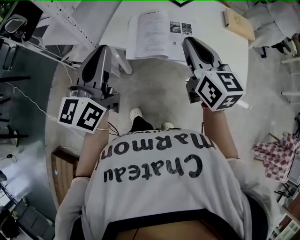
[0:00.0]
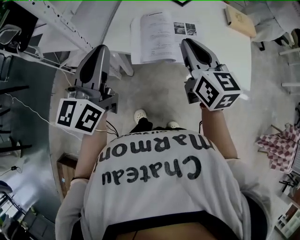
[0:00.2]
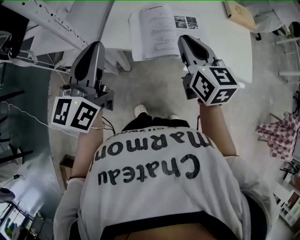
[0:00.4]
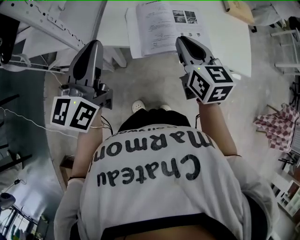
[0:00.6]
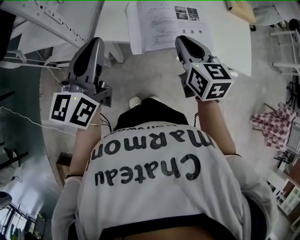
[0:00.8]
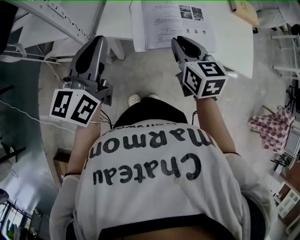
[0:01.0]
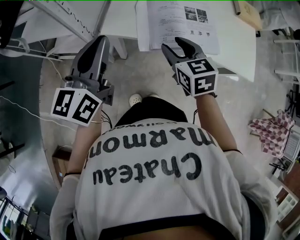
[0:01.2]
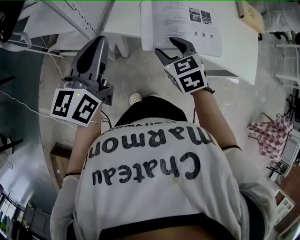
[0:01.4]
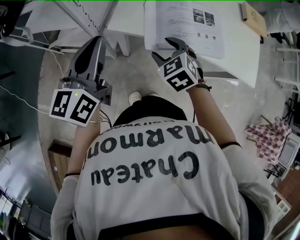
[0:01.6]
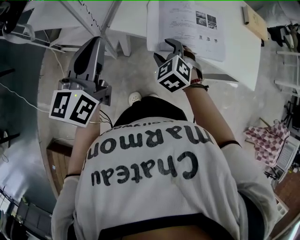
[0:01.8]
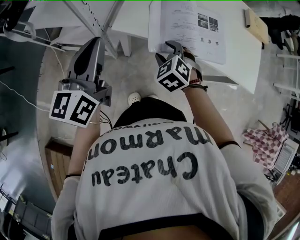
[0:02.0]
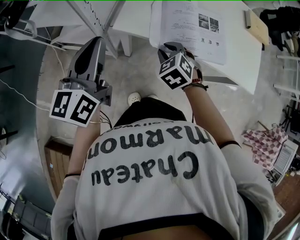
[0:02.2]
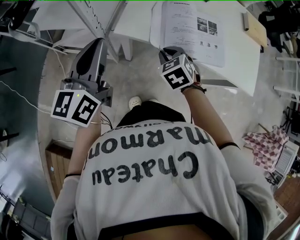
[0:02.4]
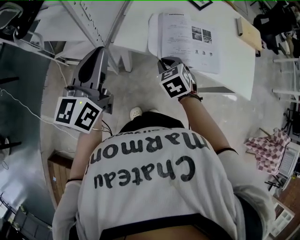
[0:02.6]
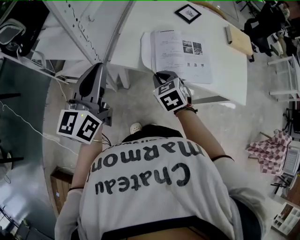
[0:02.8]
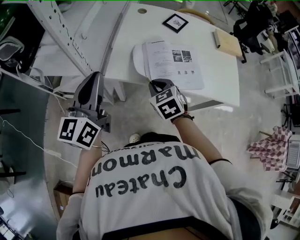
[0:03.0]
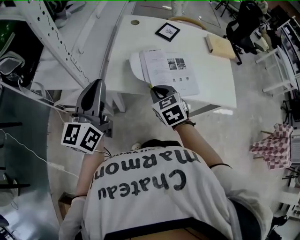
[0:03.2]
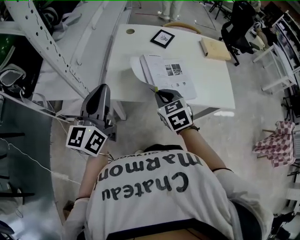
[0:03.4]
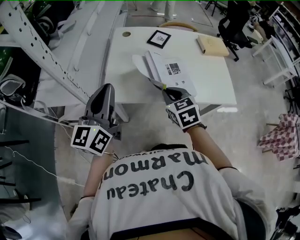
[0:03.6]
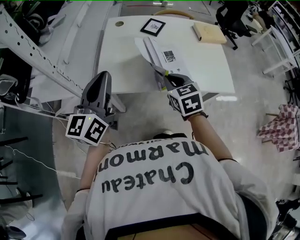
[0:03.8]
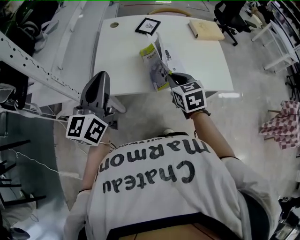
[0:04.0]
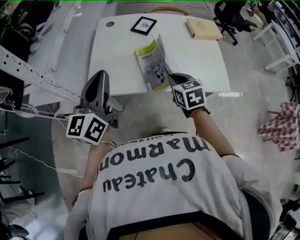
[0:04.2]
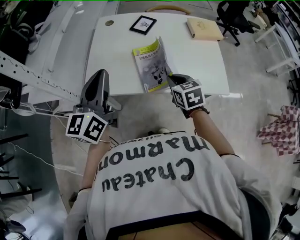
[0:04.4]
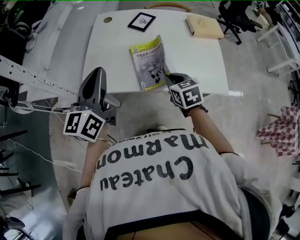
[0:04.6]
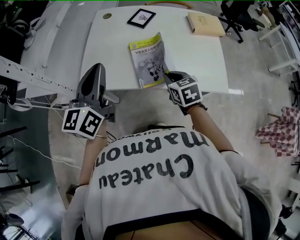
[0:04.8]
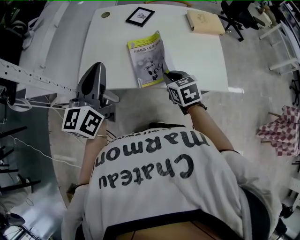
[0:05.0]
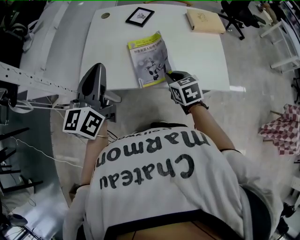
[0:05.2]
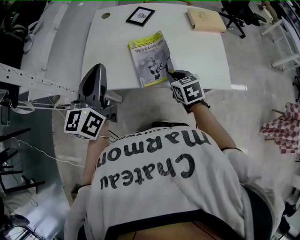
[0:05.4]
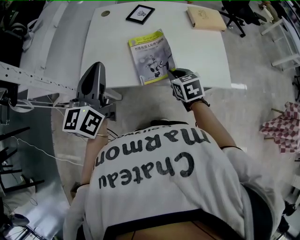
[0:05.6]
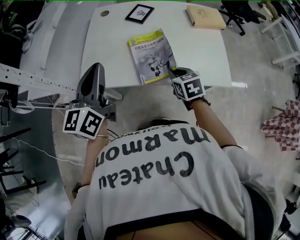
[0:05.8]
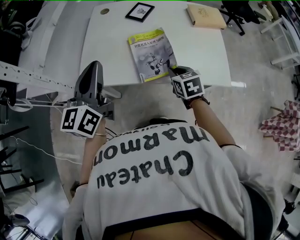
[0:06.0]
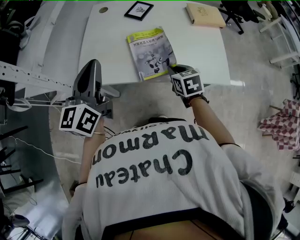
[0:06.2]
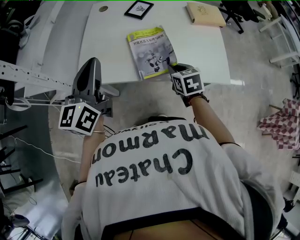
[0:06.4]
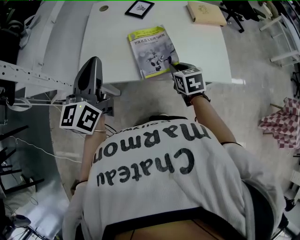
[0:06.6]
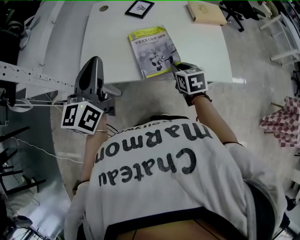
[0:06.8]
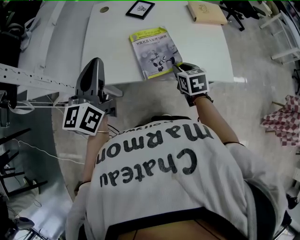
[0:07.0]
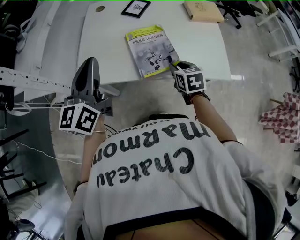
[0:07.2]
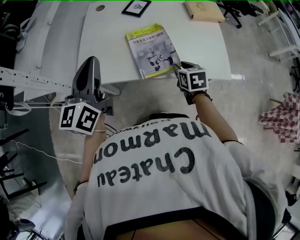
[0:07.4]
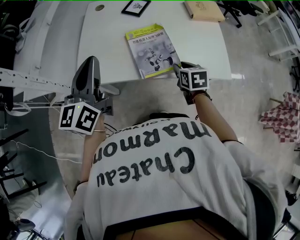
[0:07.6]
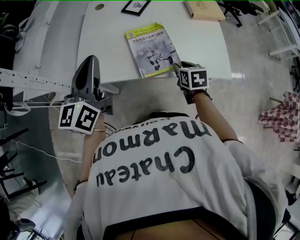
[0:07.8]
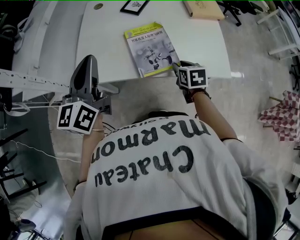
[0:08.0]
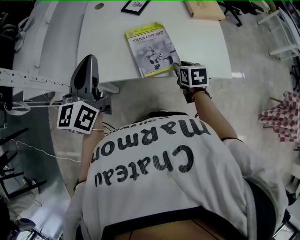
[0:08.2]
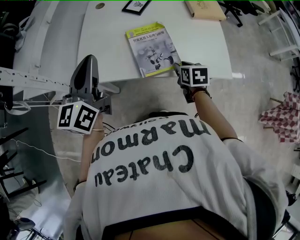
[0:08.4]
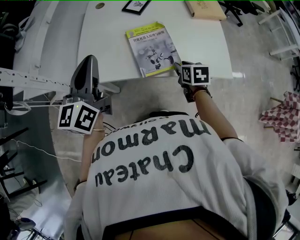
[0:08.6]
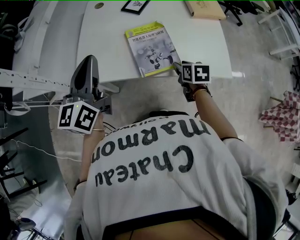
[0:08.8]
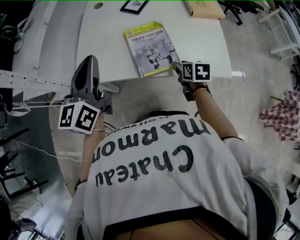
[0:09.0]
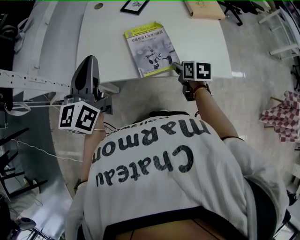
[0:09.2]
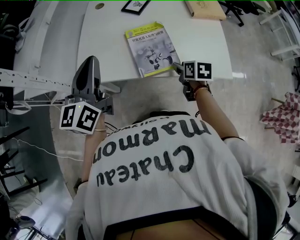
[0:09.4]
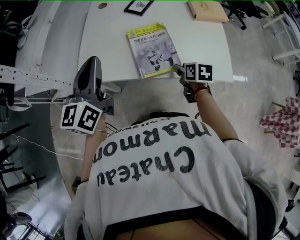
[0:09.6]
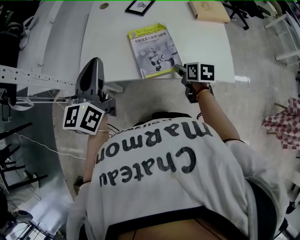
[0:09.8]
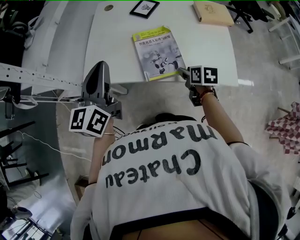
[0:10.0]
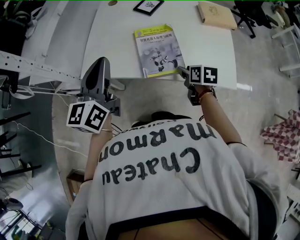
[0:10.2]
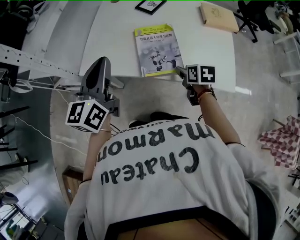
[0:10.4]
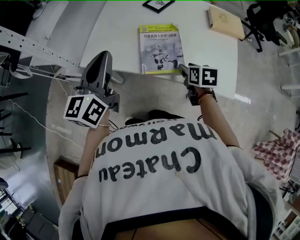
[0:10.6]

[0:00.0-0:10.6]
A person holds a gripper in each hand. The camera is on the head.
0:00.0 to 0:01.6: The left gripper heads to the left, downward and forward, covering roughly 15 cm; the right gripper goes about 25 cm downward and to the left, tips its fingers downward by roughly 40 degrees, and opens its fingers.
0:01.6 to 0:03.0: The left gripper is displaced upward by some 5 cm, while the right gripper closes its fingers.
0:03.0 to 0:04.6: Both grippers travel together to the right, some 20 cm. The right gripper swivels about 20 degrees.
0:04.6 to 0:06.0: The grippers move only a little.
0:06.0 to 0:07.6: The right gripper opens its fingers.
0:07.6 to 0:10.6: There are only small adjustments of the grippers.

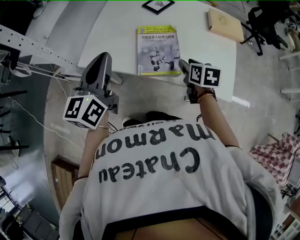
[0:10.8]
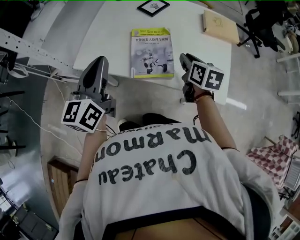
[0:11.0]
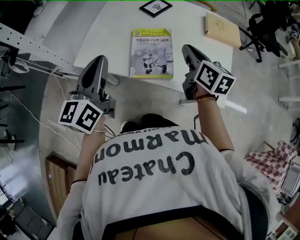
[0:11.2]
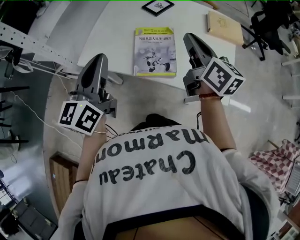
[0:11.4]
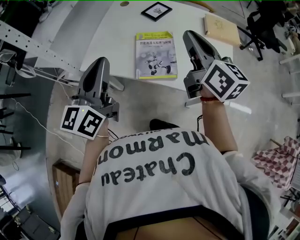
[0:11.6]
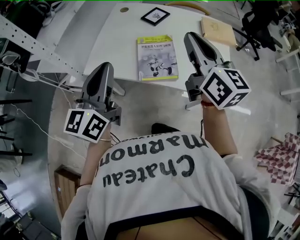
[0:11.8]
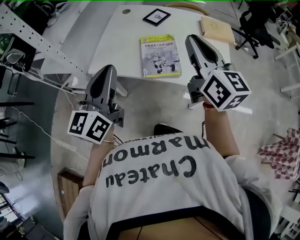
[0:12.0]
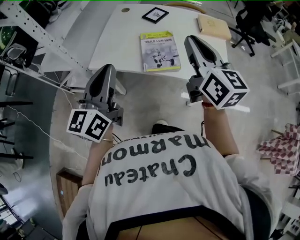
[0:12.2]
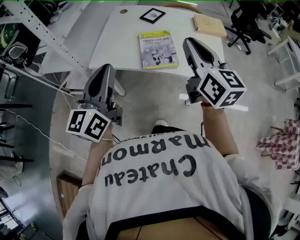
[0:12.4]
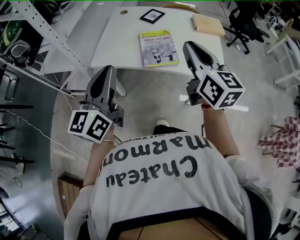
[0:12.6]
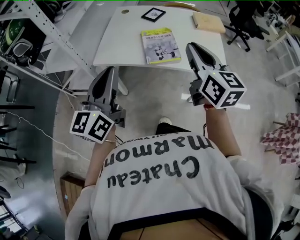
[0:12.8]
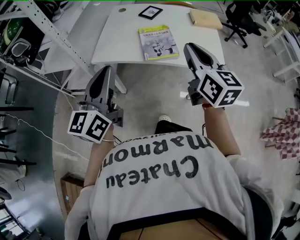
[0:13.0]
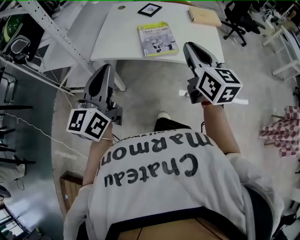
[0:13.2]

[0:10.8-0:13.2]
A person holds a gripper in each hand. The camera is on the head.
0:10.8 to 0:12.0: The left gripper goes roughly 10 cm backward and upward; the right gripper is displaced upward by roughly 30 cm, tips its fingers upward by some 50 degrees, and closes up.
0:12.0 to 0:13.2: The two grippers go some 15 cm backward.

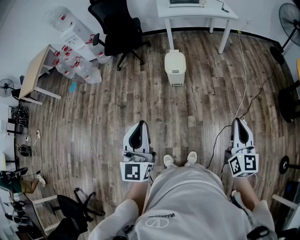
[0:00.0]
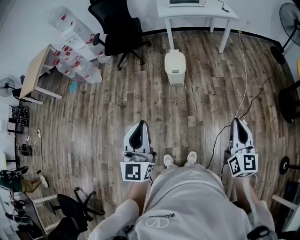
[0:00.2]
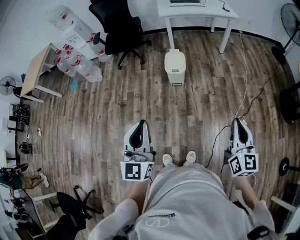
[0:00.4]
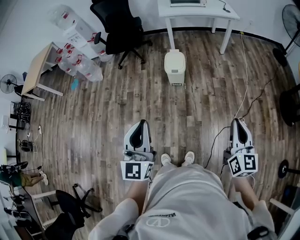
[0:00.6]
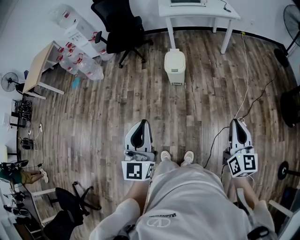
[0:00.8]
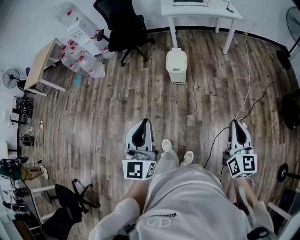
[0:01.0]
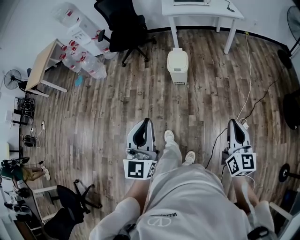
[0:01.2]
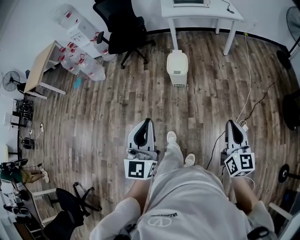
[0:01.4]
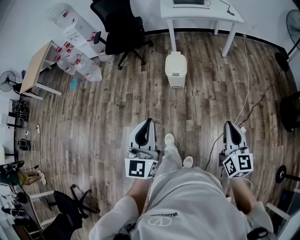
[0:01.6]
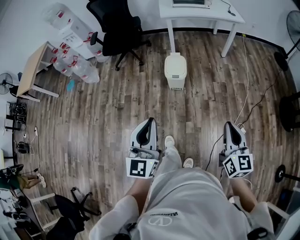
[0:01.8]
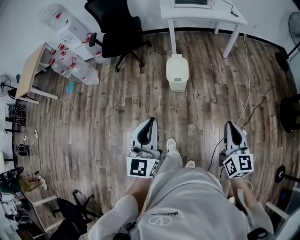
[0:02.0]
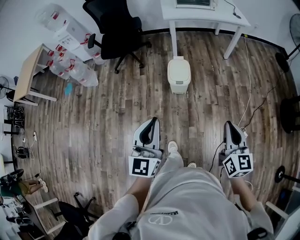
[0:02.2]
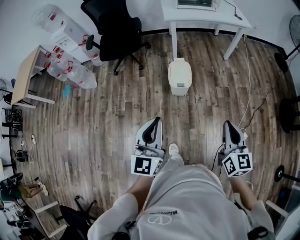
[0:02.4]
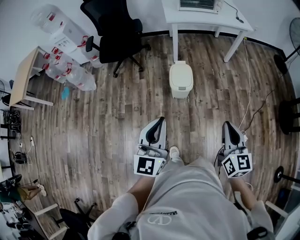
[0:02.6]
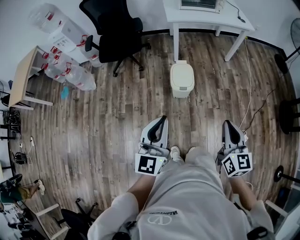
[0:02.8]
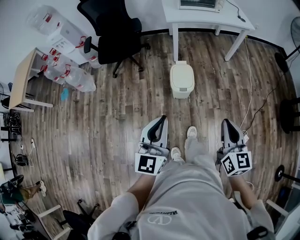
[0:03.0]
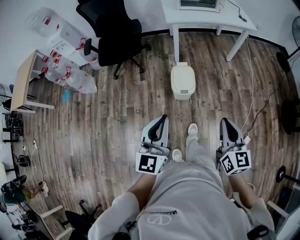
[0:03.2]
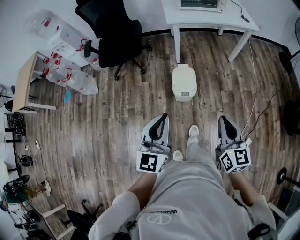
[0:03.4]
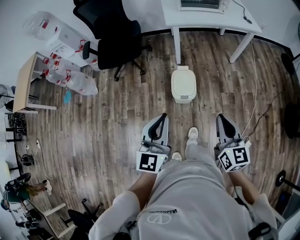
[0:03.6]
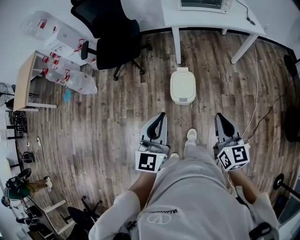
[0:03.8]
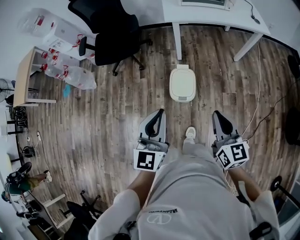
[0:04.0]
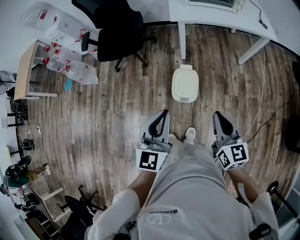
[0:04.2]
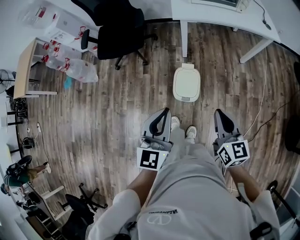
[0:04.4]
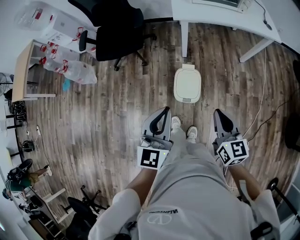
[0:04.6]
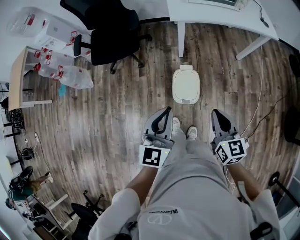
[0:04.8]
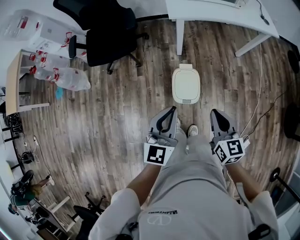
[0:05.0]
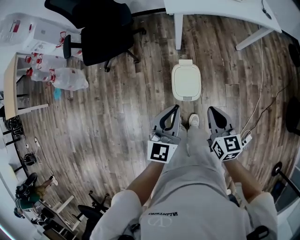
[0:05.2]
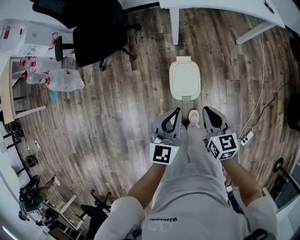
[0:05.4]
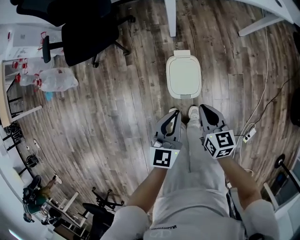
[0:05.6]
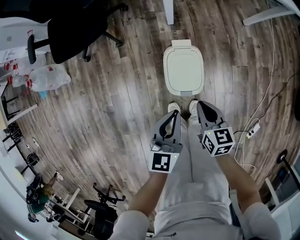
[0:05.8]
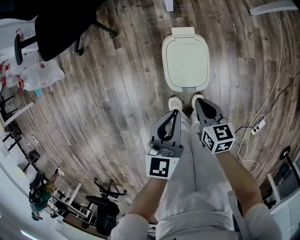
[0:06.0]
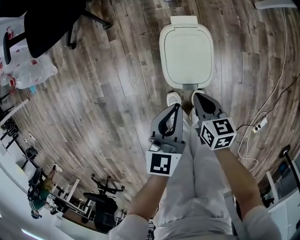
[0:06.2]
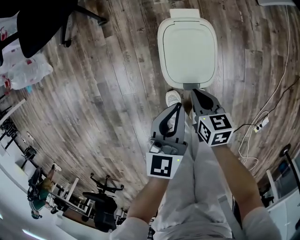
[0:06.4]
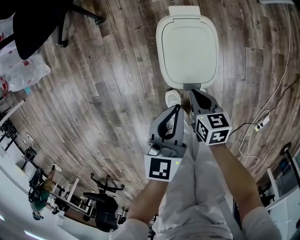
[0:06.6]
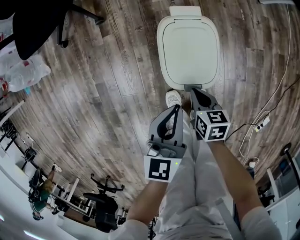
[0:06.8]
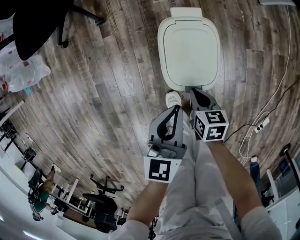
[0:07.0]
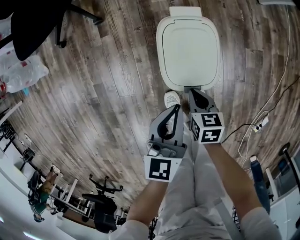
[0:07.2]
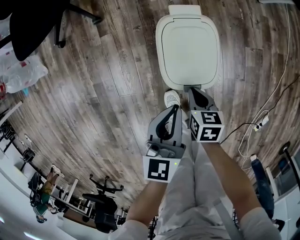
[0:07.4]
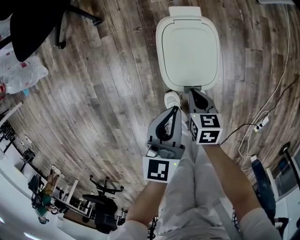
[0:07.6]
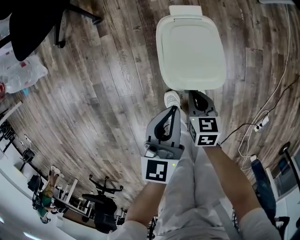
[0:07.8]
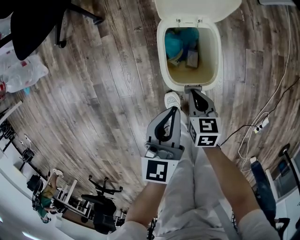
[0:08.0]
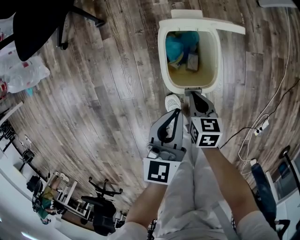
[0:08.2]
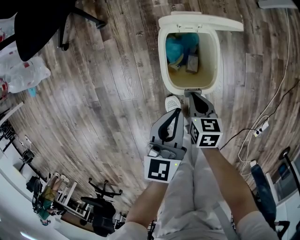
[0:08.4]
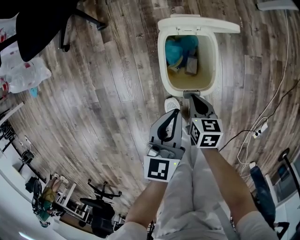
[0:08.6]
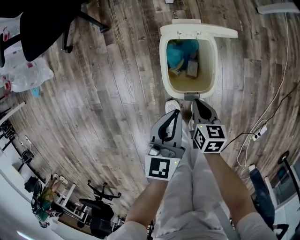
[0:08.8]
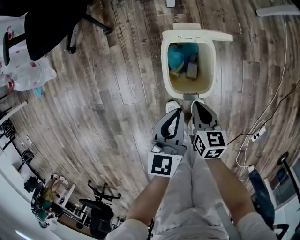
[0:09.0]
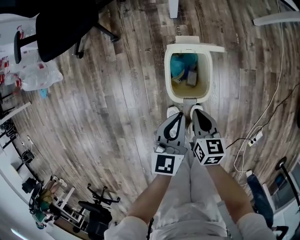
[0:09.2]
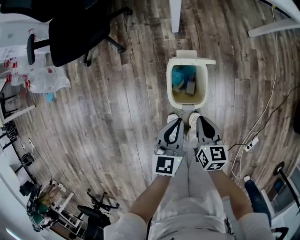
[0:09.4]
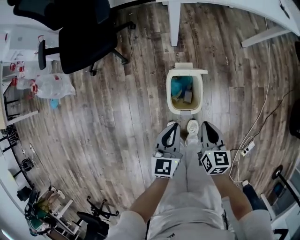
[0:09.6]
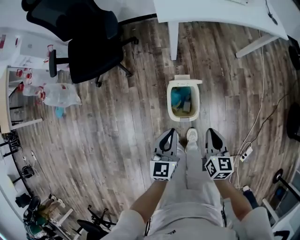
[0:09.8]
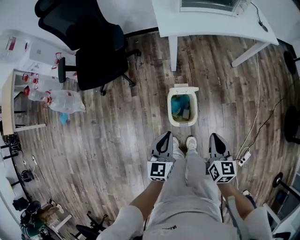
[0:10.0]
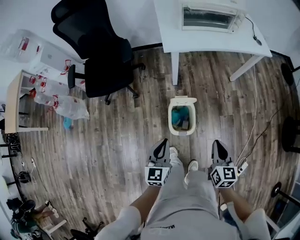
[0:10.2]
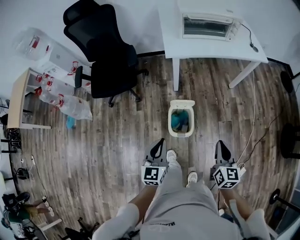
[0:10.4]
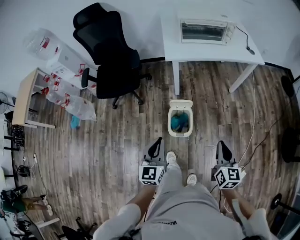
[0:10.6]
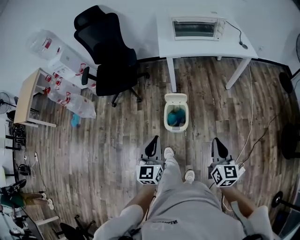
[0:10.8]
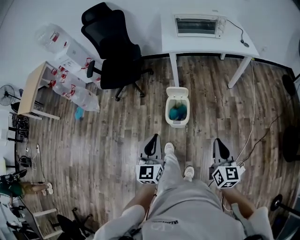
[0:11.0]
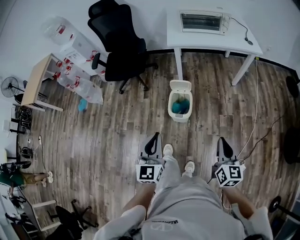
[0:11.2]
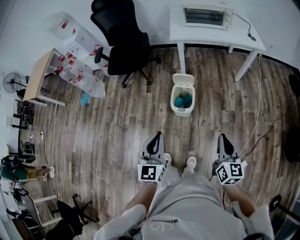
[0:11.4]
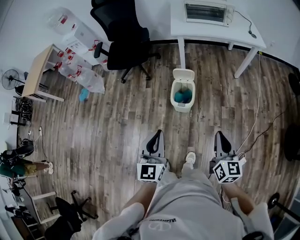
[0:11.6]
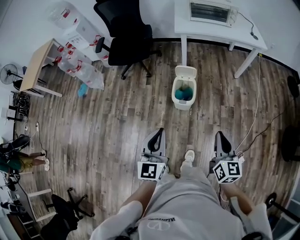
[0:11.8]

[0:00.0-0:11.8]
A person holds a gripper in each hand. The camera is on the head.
0:00.0 to 0:01.4: The left gripper travels to the right by about 5 cm. The right gripper ends up some 5 cm from where it was.
0:01.4 to 0:03.0: The right gripper shifts approximately 35 cm forward and to the left. Meanwhile the left gripper heads forward, covering some 30 cm.
0:03.0 to 0:04.4: The two grippers go some 25 cm forward.
0:04.4 to 0:06.0: Both grippers travel together downward, some 40 cm. The right gripper rotates approximately 30 degrees, while the left gripper swivels roughly 20 degrees.
0:06.0 to 0:07.4: Both grippers move downward, about 15 cm.
0:07.4 to 0:08.8: There are only small adjustments of the grippers.
0:08.8 to 0:10.4: Both grippers move upward, some 50 cm. The right gripper changes its angle by some 40 degrees.
0:10.4 to 0:11.8: Both grippers travel together backward, approximately 30 cm.
